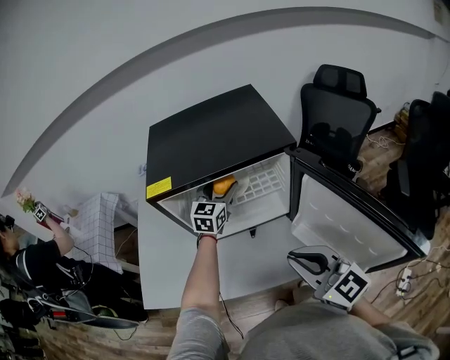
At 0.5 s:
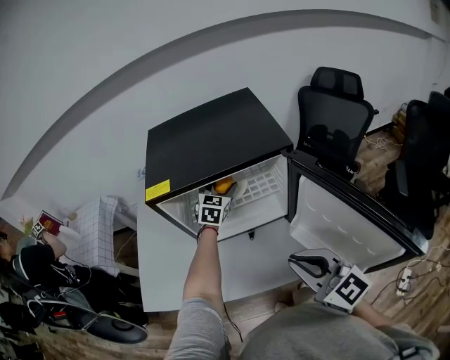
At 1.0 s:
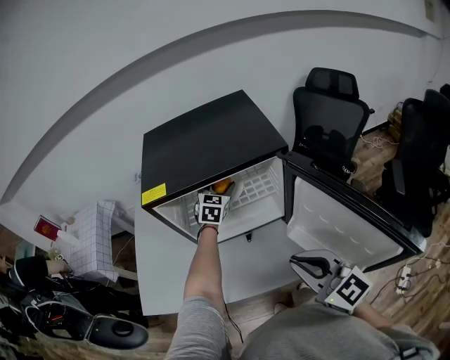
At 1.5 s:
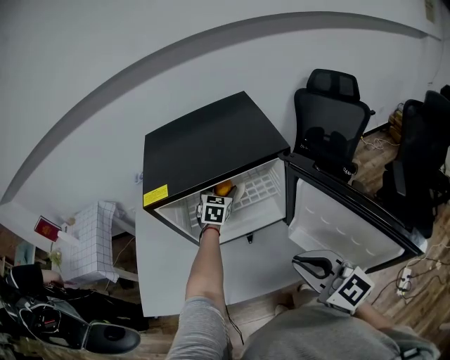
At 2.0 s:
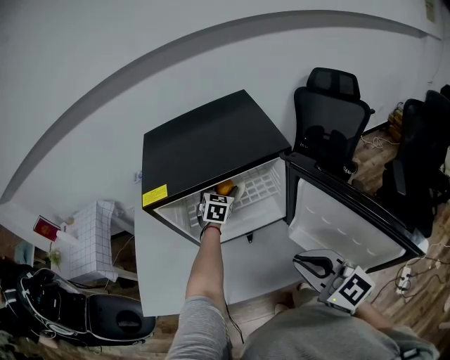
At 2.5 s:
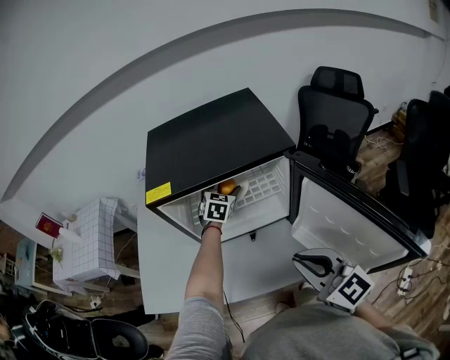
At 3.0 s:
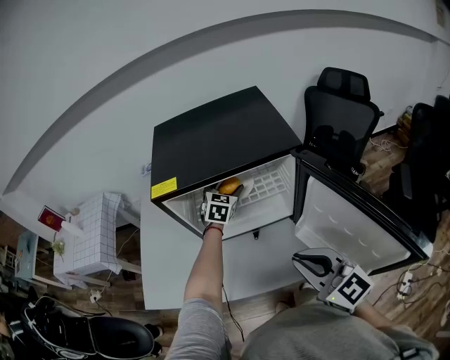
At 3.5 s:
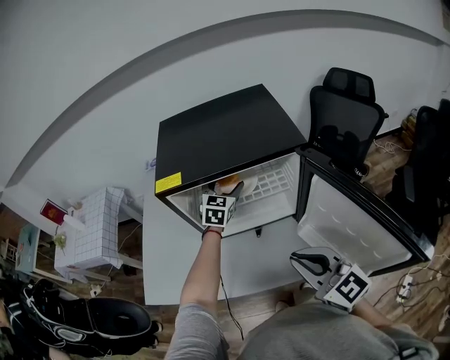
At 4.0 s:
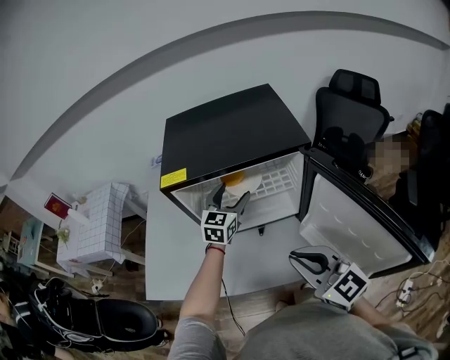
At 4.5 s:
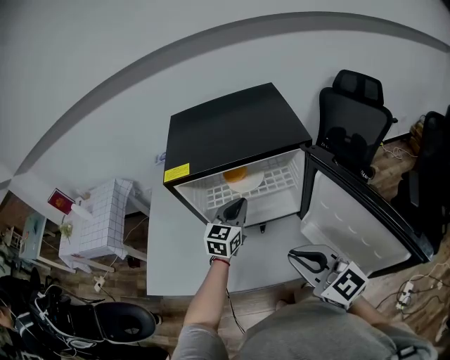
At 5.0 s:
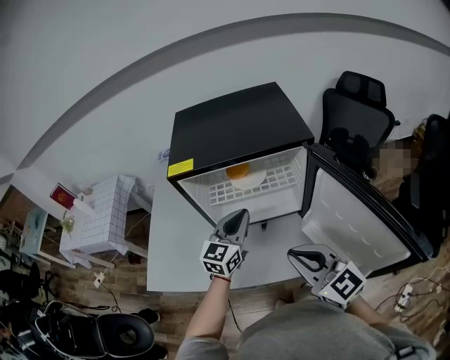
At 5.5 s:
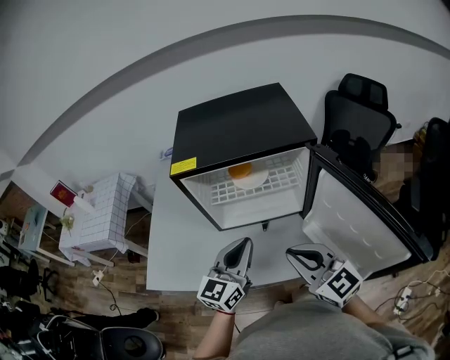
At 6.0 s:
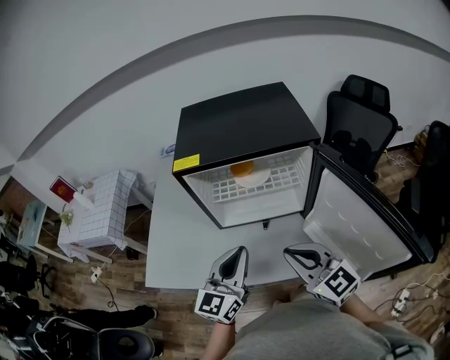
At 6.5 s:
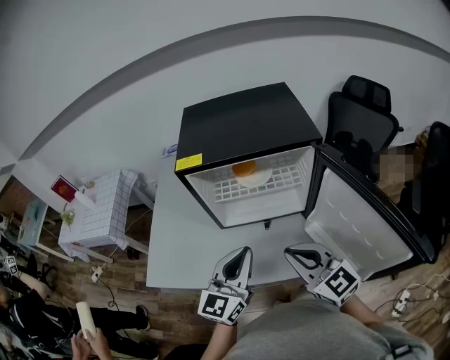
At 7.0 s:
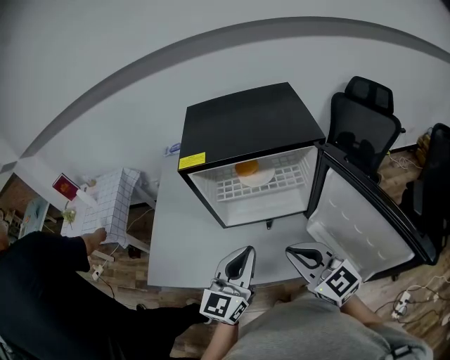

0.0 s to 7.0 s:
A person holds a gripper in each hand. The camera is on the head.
0.0 to 2.0 s: The left gripper travels downward by approximately 5 cm, and turns by about 20 degrees.
2.0 to 3.5 s: The left gripper ends up roughly 5 cm from where it was.
3.5 to 5.0 s: The left gripper moves backward, some 20 cm, swivels approximately 20 degrees, and closes its fingers.
5.0 to 7.0 s: The left gripper heads backward, covering approximately 15 cm.

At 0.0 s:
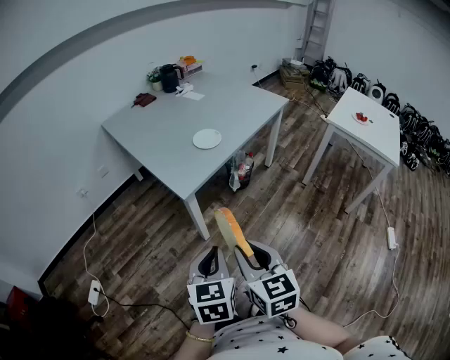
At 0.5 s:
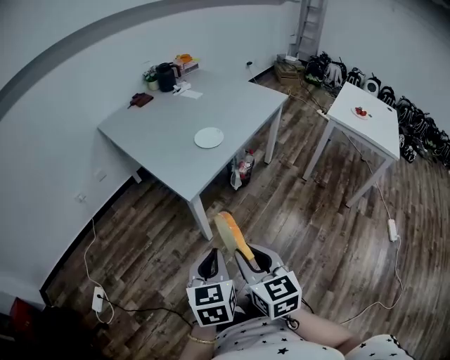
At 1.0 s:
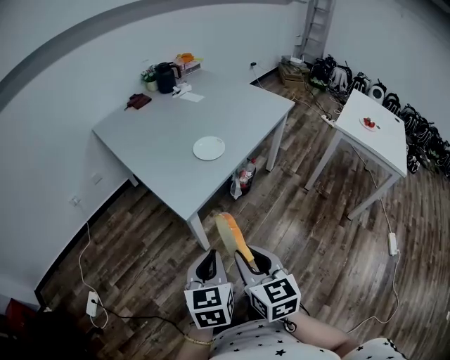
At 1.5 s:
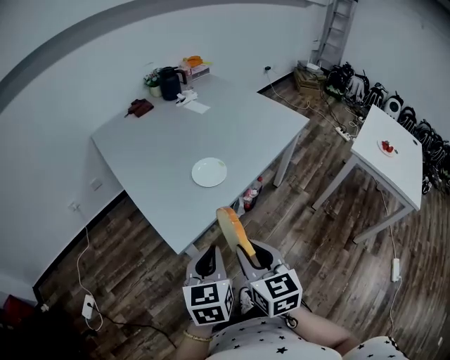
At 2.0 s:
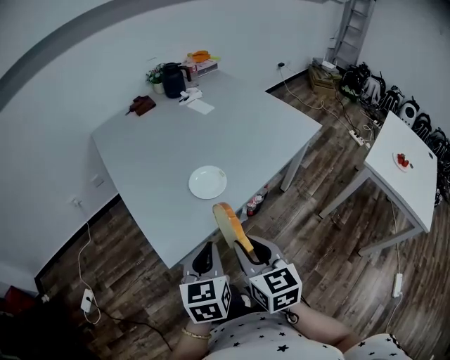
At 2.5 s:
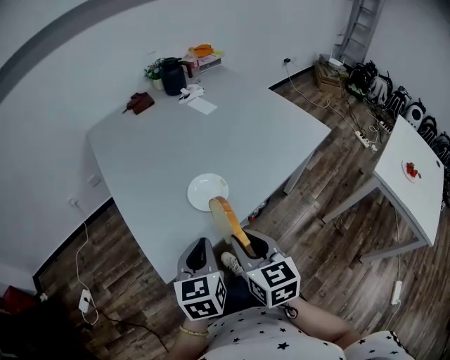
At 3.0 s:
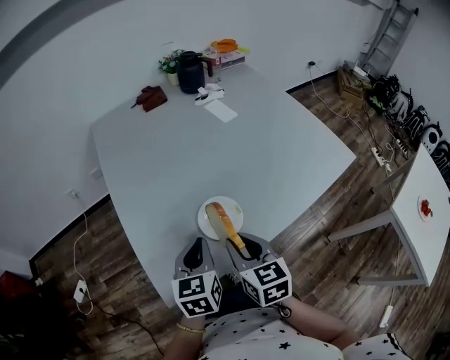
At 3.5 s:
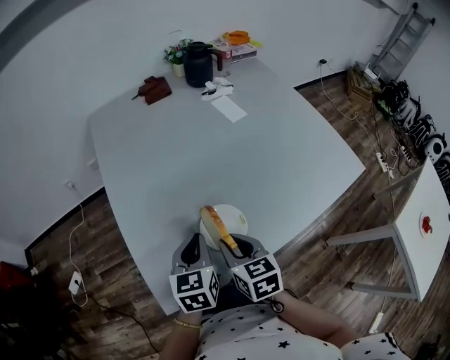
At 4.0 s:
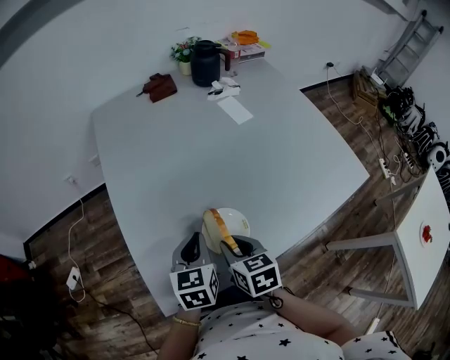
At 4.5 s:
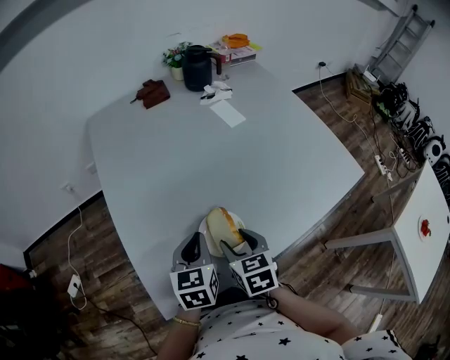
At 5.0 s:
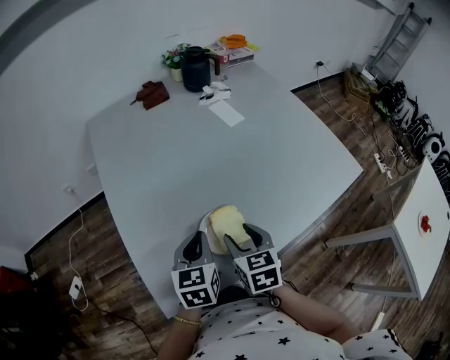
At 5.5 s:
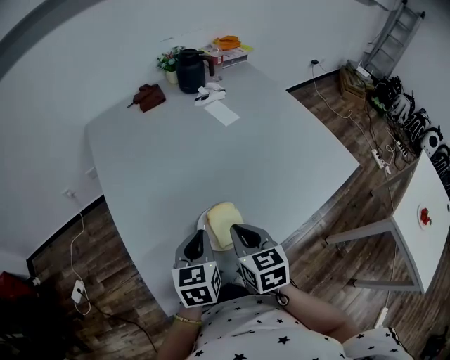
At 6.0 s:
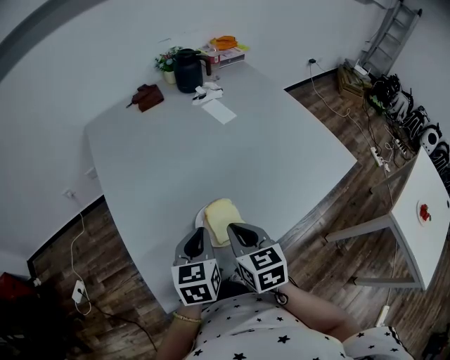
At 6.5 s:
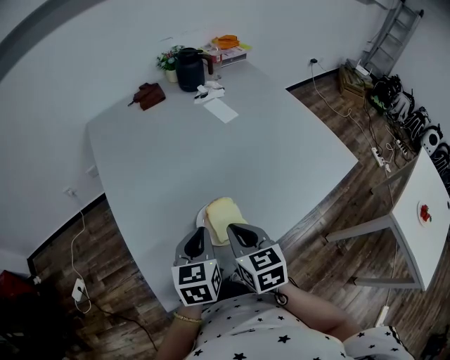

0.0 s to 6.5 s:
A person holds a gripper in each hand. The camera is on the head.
0.0 to 2.0 s: The grippers both shift forward by some 35 cm.
2.0 to 4.5 s: Both grippers travel together forward, some 30 cm. The right gripper changes its angle by approximately 30 degrees, and opens its fingers.
4.5 to 6.5 s: The right gripper heads upward, covering approximately 5 cm, and closes up.

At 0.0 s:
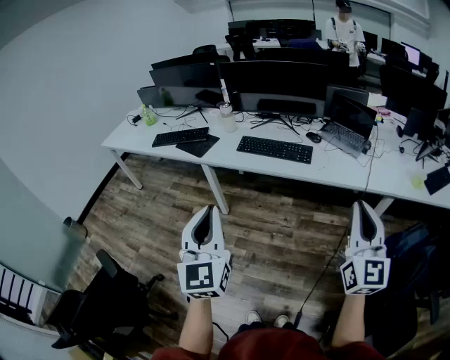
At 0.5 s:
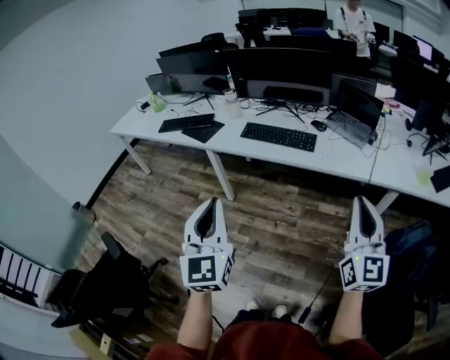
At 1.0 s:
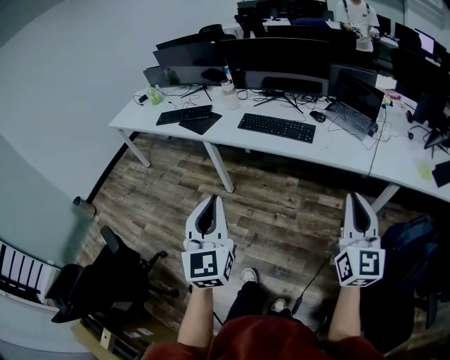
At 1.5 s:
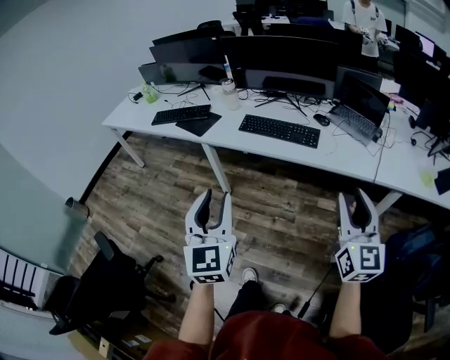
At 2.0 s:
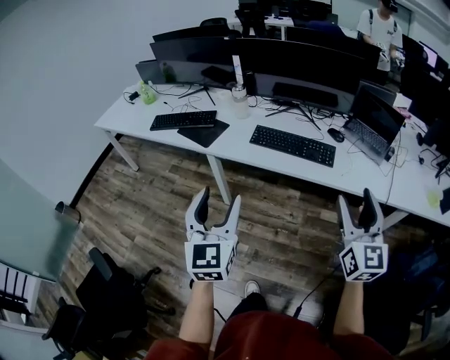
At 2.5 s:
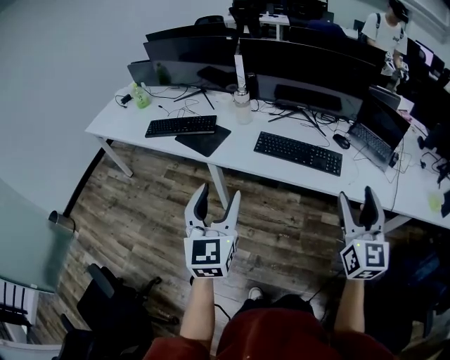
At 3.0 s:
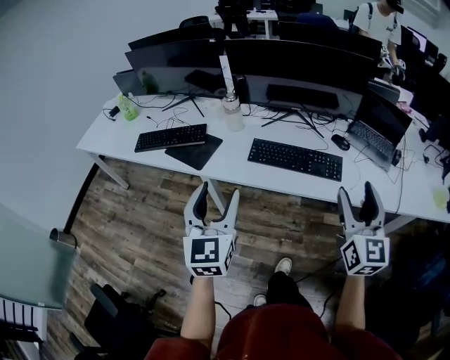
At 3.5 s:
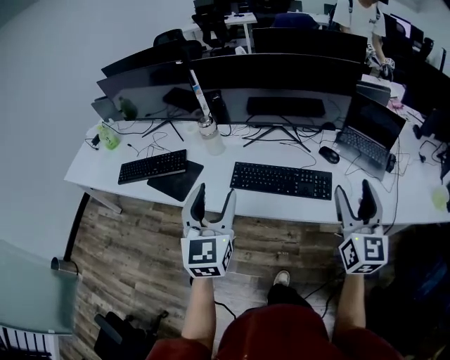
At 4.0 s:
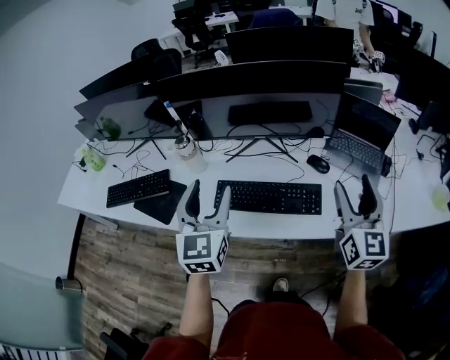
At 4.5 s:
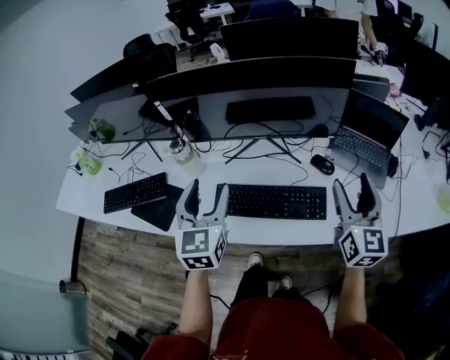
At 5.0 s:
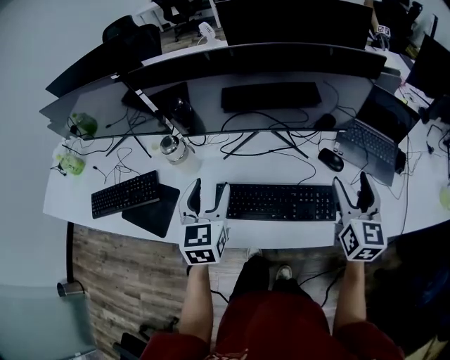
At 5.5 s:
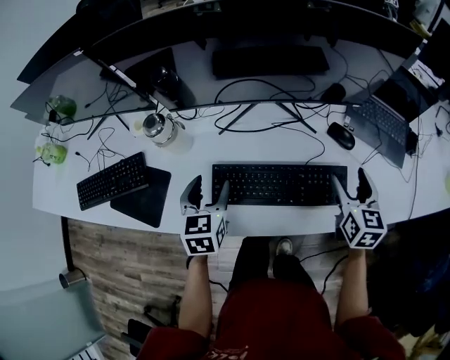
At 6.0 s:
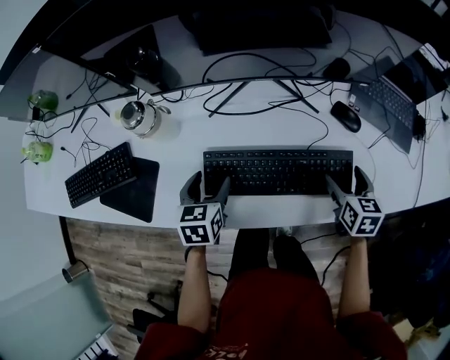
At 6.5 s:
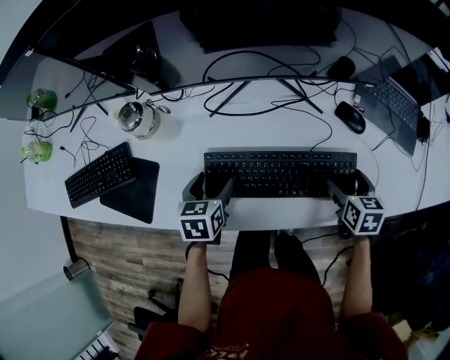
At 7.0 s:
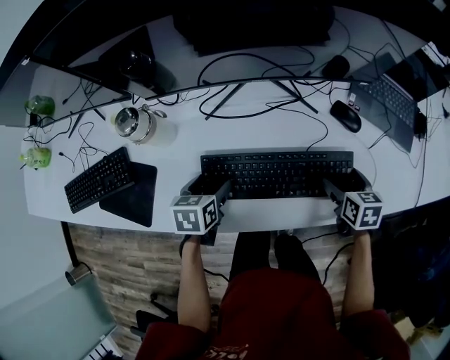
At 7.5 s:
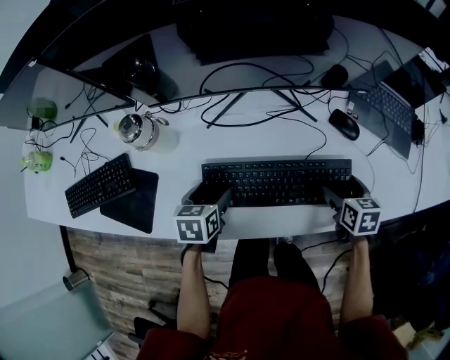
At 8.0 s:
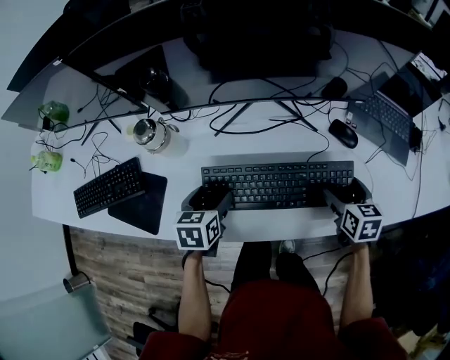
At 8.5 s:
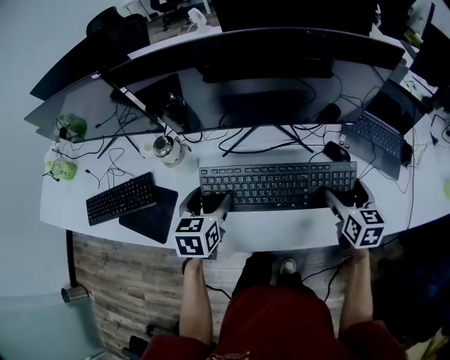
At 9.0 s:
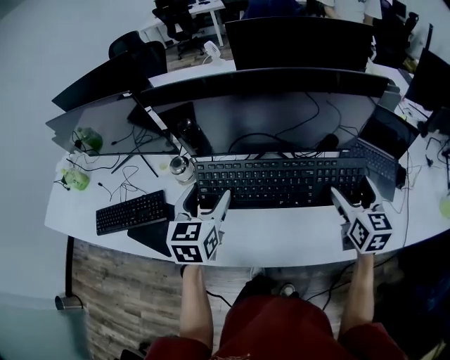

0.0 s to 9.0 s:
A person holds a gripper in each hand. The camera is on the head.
0.0 to 2.0 s: The left gripper travels forward and downward by roughly 20 cm, and opens up. The right gripper shifts roughly 20 cm forward and to the left, and opens its fingers.
2.0 to 4.5 s: The two grippers go approximately 40 cm forward.
4.5 to 7.0 s: Both grippers move downward, about 30 cm. The left gripper tilts its fingers about 40 degrees downward, while the right gripper tips its fingers downward by about 50 degrees.
7.0 to 9.0 s: The two grippers go roughly 25 cm upward. The left gripper tips its fingers upward by approximately 30 degrees, while the right gripper tips its fingers upward by approximately 30 degrees.

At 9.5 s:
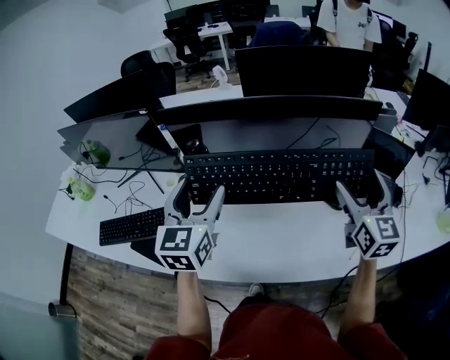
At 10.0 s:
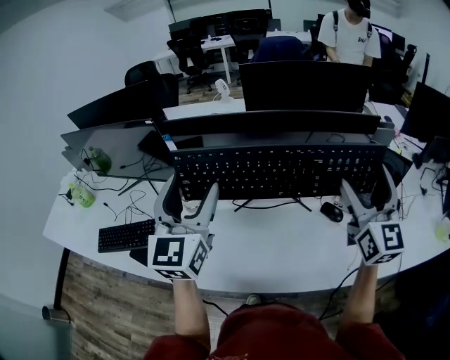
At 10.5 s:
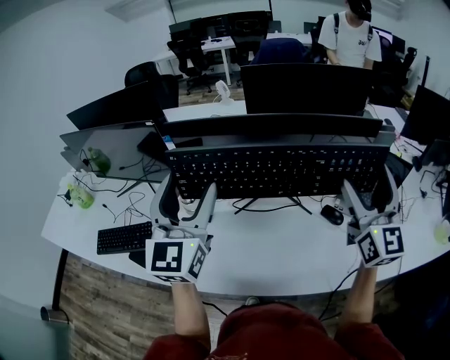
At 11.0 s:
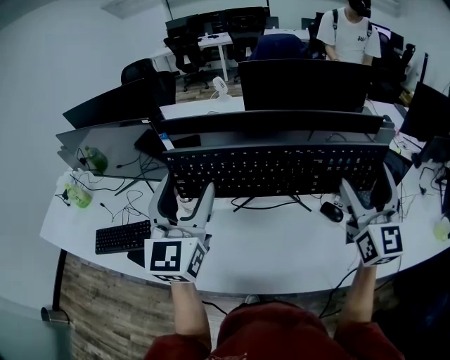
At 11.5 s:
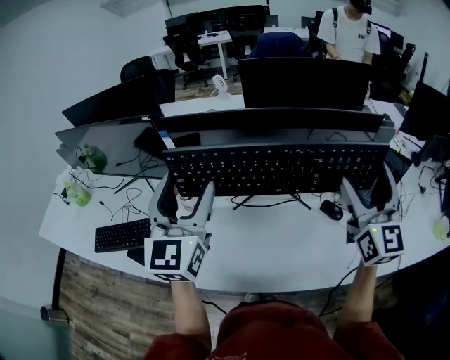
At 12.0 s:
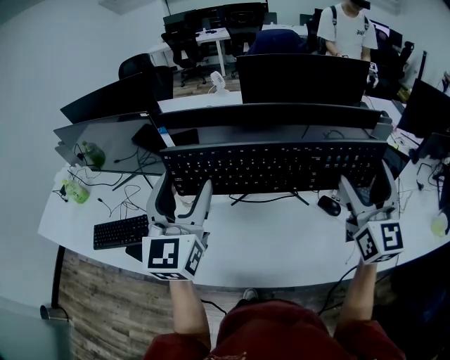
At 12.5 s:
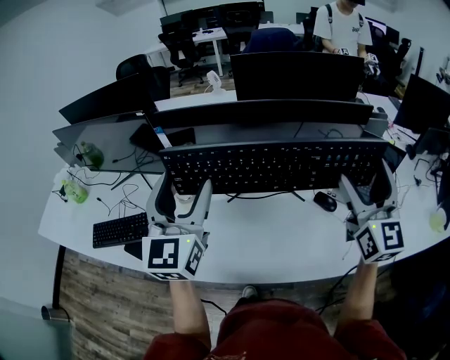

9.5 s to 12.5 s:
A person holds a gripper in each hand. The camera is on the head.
9.5 to 11.0 s: Both grippers move upward, some 5 cm.
11.0 to 12.5 s: Neither gripper changes place.

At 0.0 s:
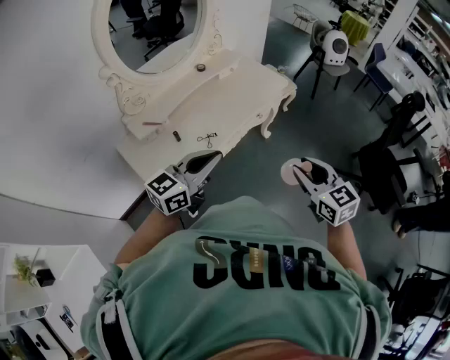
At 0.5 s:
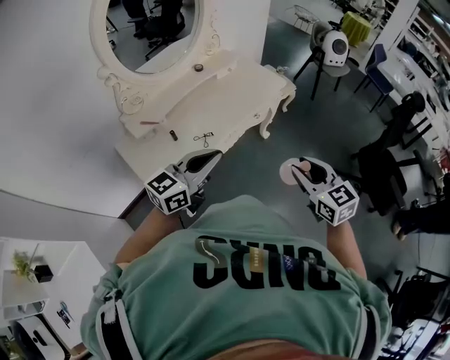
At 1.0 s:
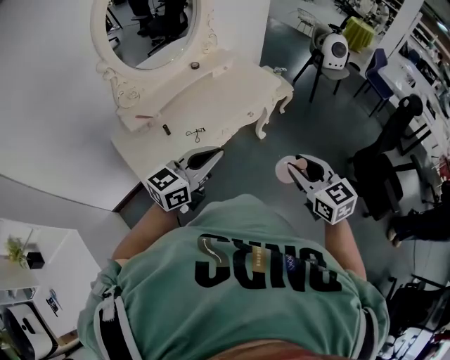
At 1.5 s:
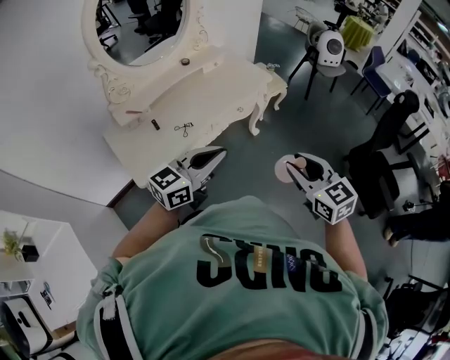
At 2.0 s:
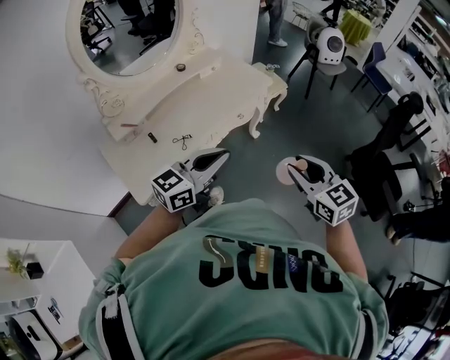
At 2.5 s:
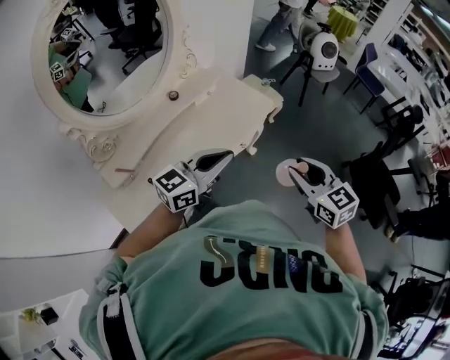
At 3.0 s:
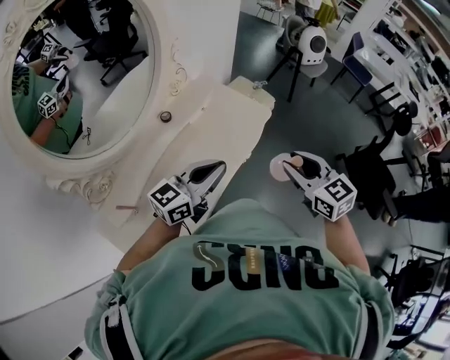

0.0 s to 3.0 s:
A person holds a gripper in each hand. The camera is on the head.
0.0 to 1.5 s: Both grippers move to the right, approximately 15 cm.
1.5 to 3.0 s: Both grippers travel together forward and to the left, some 35 cm.
